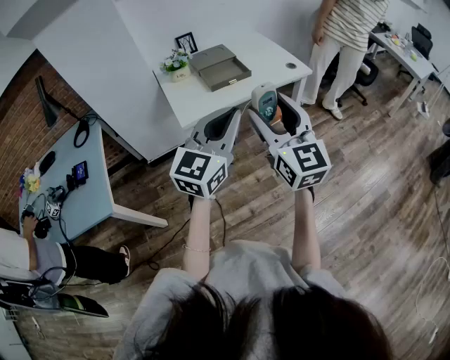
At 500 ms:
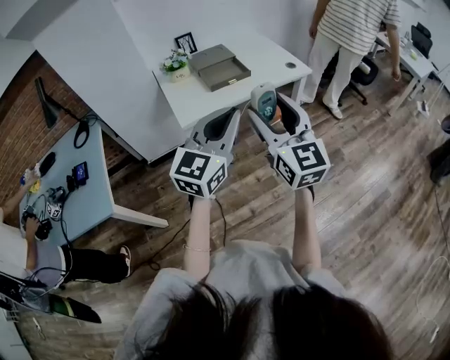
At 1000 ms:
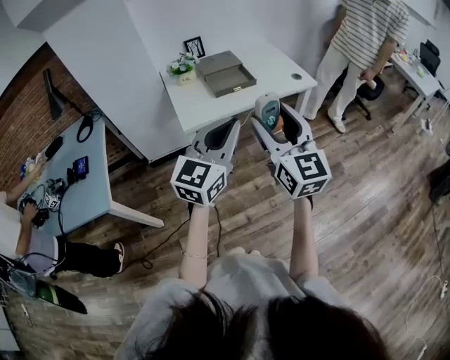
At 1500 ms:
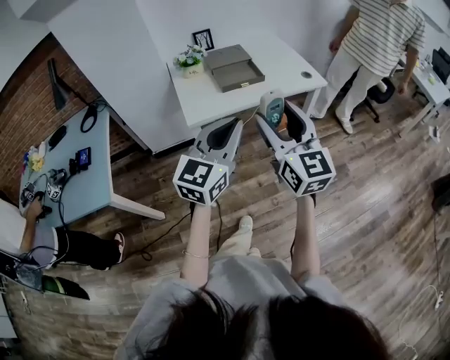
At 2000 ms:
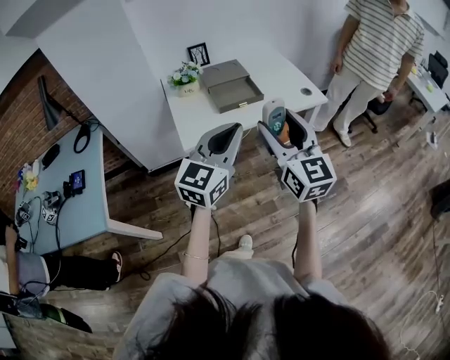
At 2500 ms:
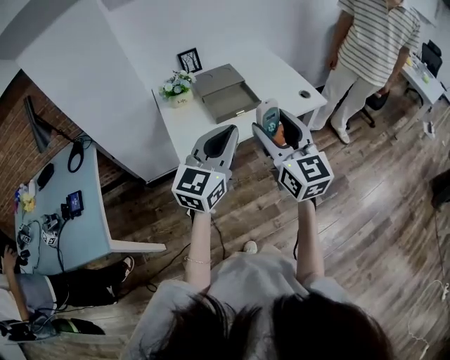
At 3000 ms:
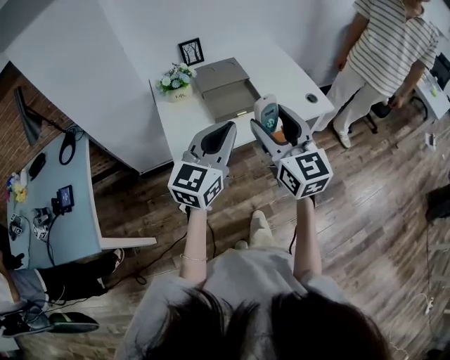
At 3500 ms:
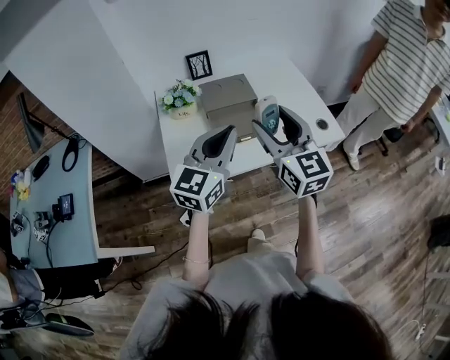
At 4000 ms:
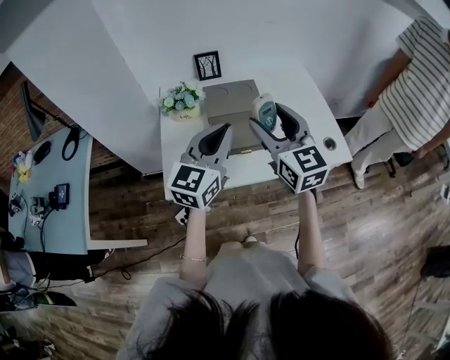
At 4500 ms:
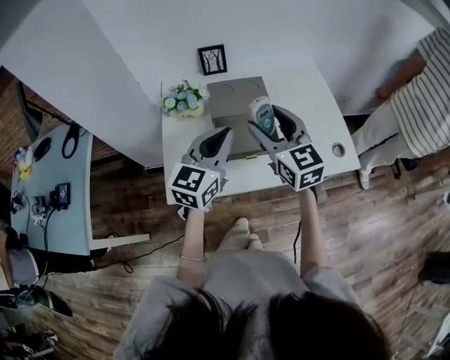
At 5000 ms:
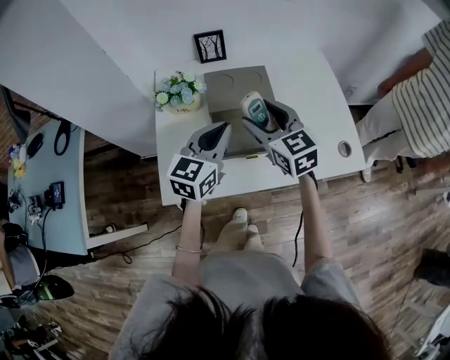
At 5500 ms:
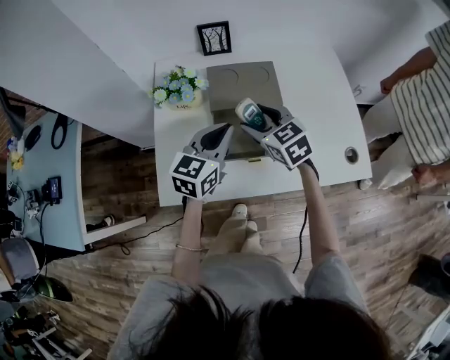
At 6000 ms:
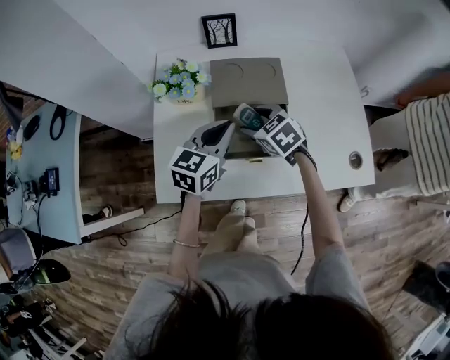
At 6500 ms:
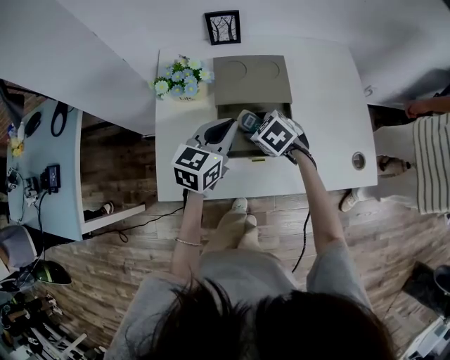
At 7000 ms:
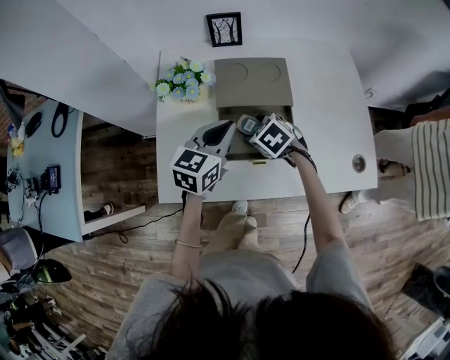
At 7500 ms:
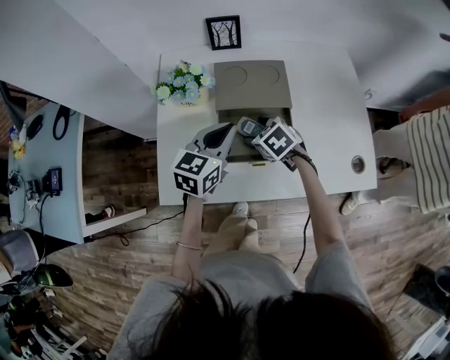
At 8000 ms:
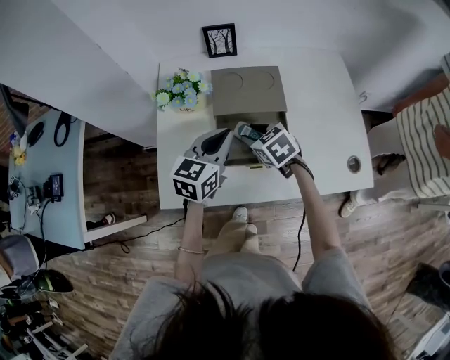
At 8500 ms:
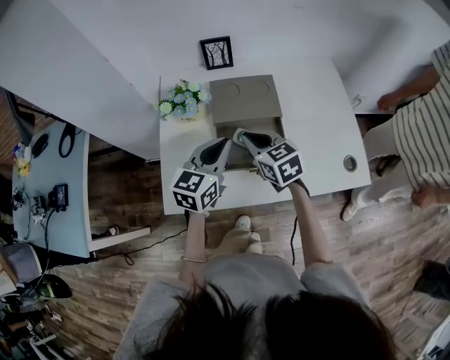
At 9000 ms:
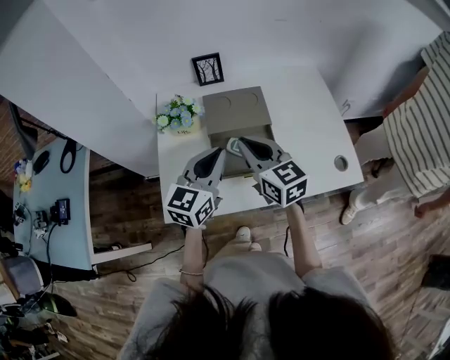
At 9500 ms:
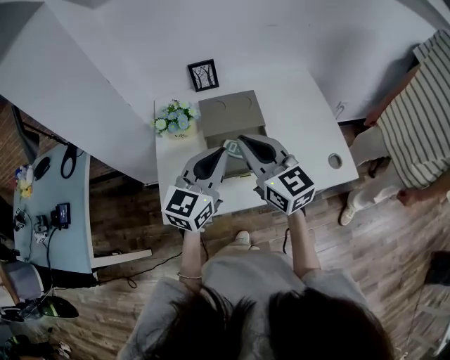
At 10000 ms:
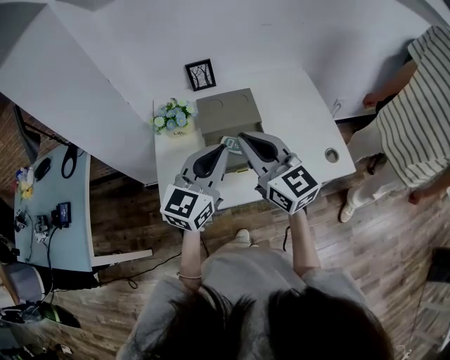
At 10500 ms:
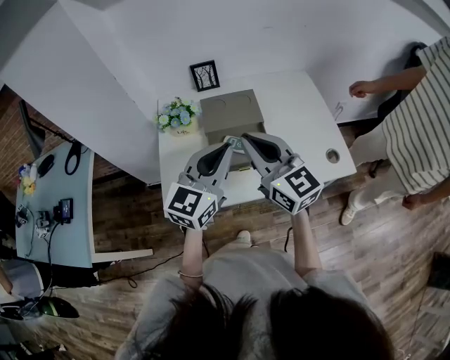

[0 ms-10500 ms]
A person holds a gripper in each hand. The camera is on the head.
0 ms to 2000 ms: Both grippers move forward, about 10 cm.
2000 ms to 4000 ms: Both grippers move forward, some 30 cm.
4000 ms to 6500 ms: Both grippers travel together downward and forward, approximately 30 cm. The right gripper tilts its fingers roughly 60 degrees downward. Meanwhile the left gripper rotates approximately 20 degrees.
6500 ms to 8500 ms: The left gripper moves about 5 cm. Meanwhile the right gripper goes about 10 cm upward, swivels some 30 degrees, and closes up.
8500 ms to 10500 ms: The grippers both shift upward and backward by roughly 20 cm. The right gripper points its fingers some 30 degrees further upward; the left gripper changes its angle by roughly 20 degrees.

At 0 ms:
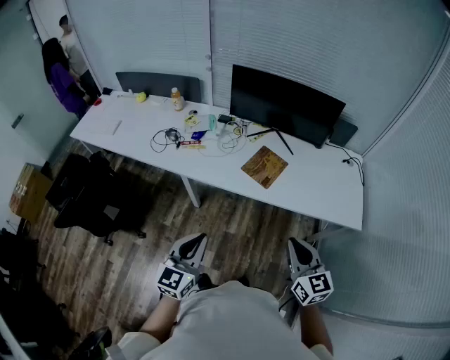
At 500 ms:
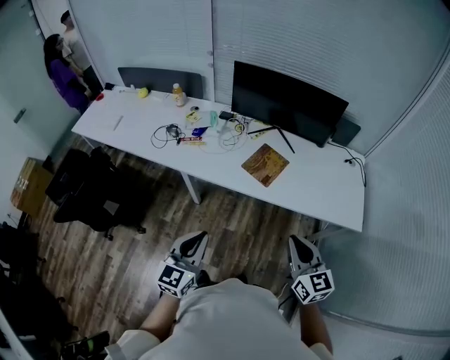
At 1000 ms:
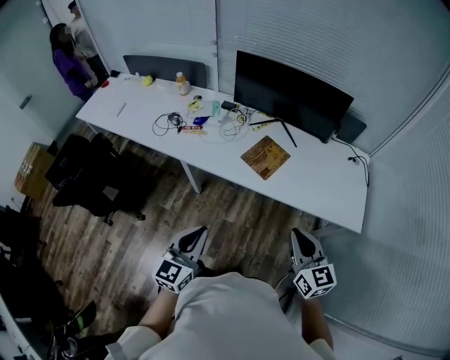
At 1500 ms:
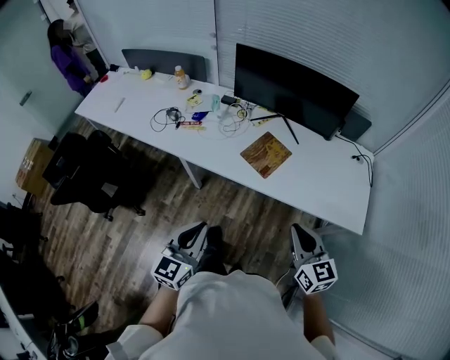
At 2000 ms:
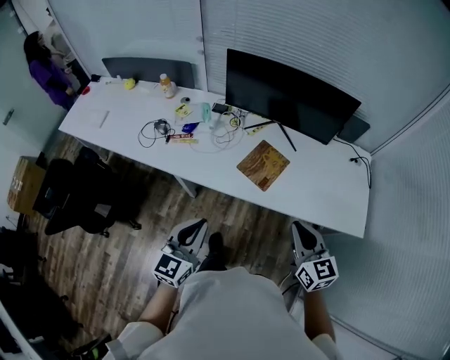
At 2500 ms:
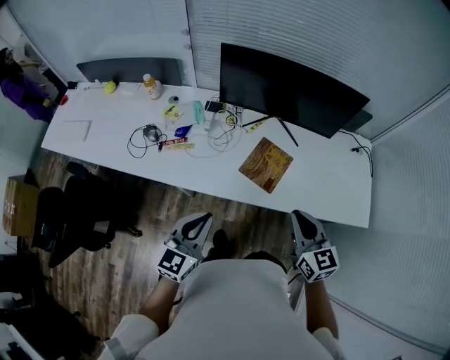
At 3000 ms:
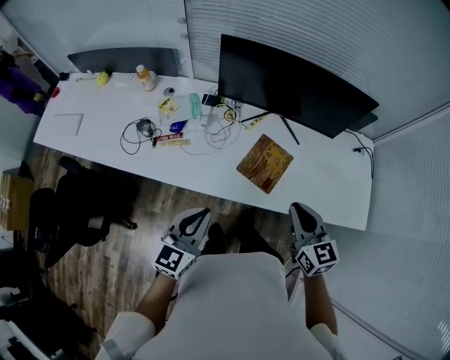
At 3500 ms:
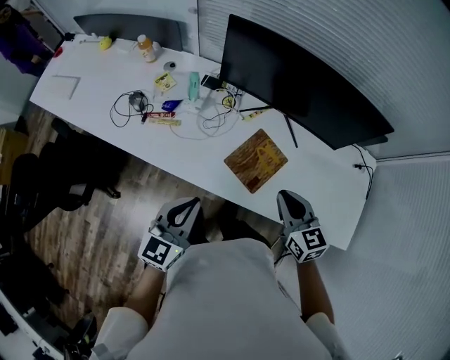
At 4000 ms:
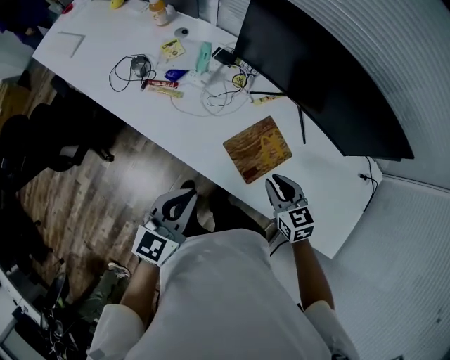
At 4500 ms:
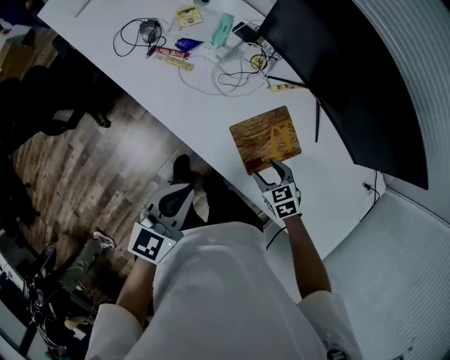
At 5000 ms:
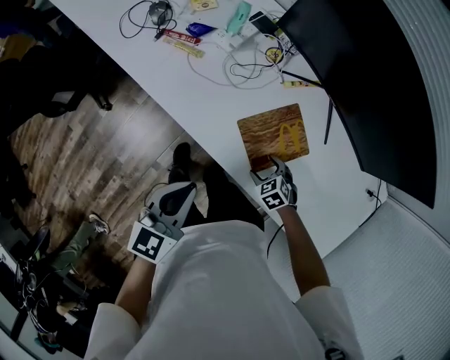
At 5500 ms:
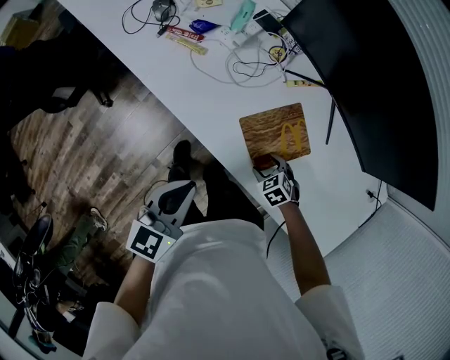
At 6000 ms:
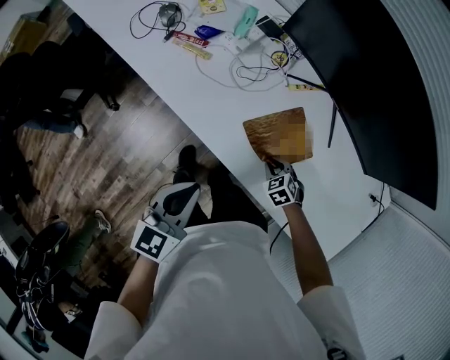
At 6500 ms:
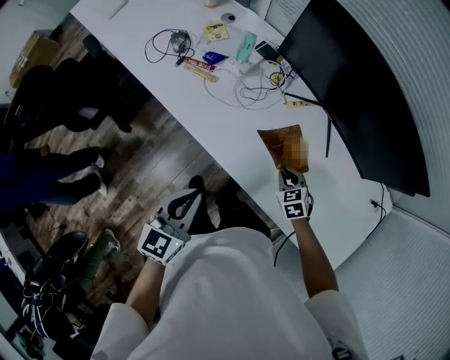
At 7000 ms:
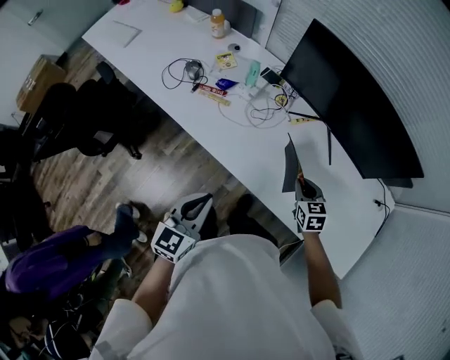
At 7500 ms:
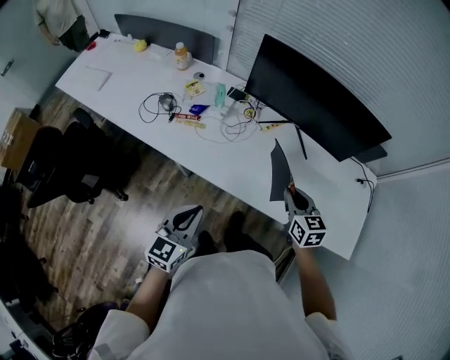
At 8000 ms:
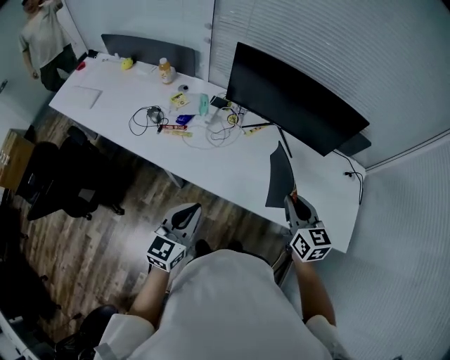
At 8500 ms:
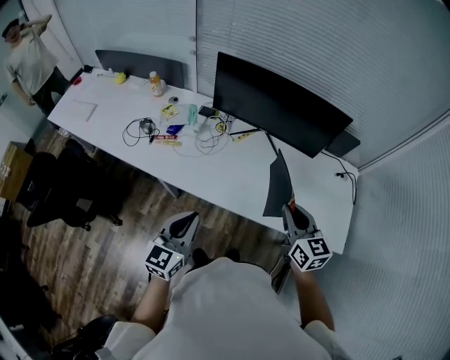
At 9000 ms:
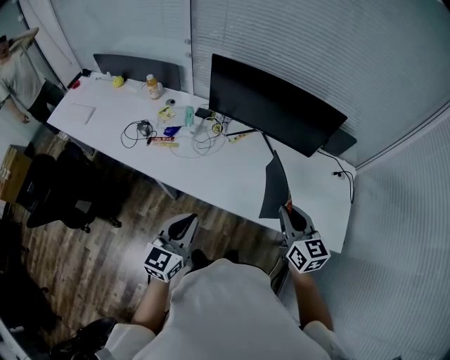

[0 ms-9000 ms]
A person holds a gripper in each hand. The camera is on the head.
0 ms to 2000 ms: Both grippers travel together forward, about 15 cm.
2000 ms to 4500 ms: The right gripper heads downward, covering approximately 35 cm, angles its fingers downward, by approximately 40 degrees, and opens its fingers; the left gripper ends up roughly 20 cm from where it was, and turns by about 30 degrees.
4500 ms to 7000 ms: The left gripper is displaced to the left by some 5 cm. The right gripper heads upward, covering roughly 10 cm, swivels about 30 degrees, and closes.
7000 ms to 9000 ms: The left gripper heads upward, to the right and backward, covering roughly 10 cm. Meanwhile the right gripper travels upward and backward by roughly 30 cm, and rotates some 30 degrees.

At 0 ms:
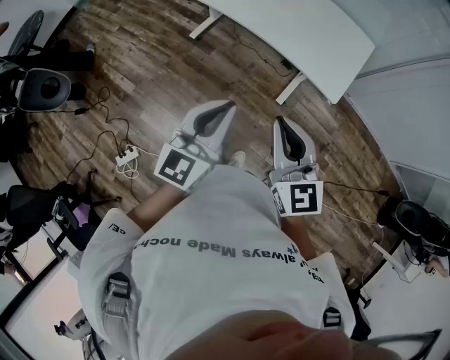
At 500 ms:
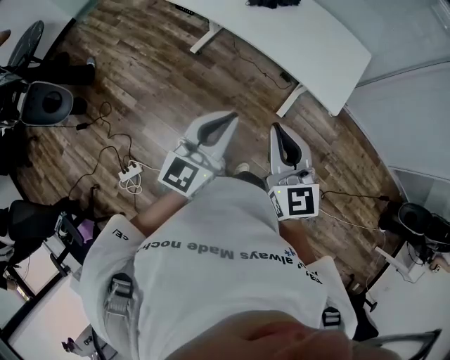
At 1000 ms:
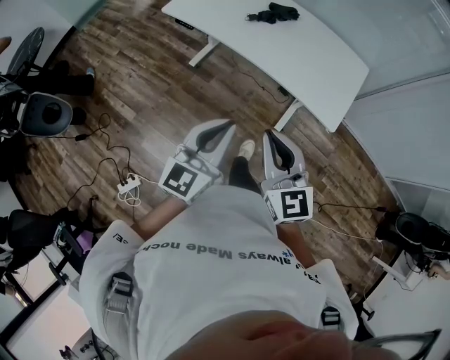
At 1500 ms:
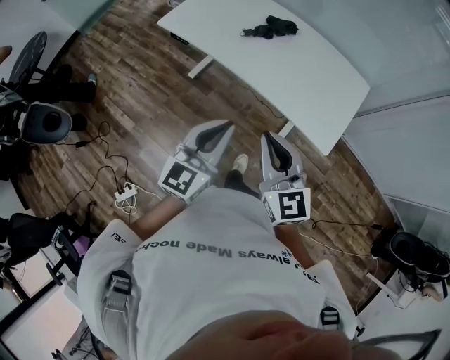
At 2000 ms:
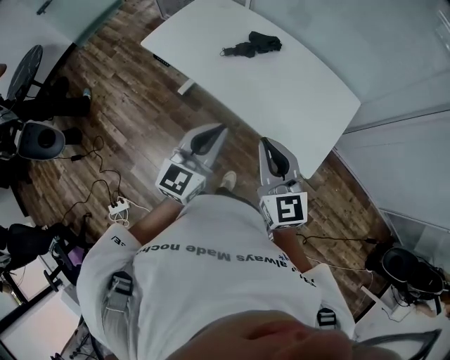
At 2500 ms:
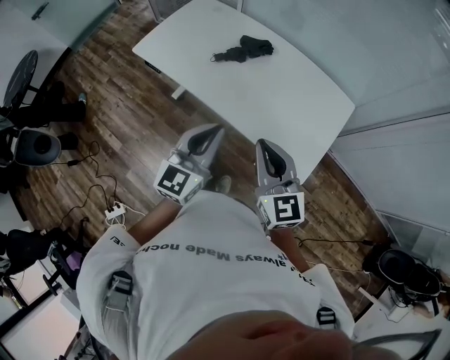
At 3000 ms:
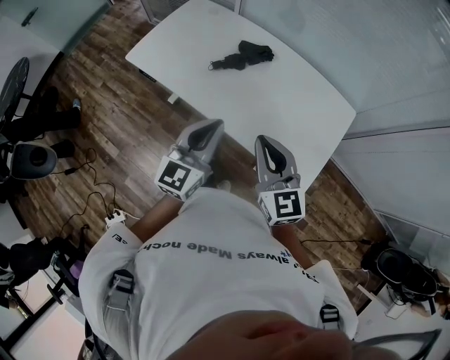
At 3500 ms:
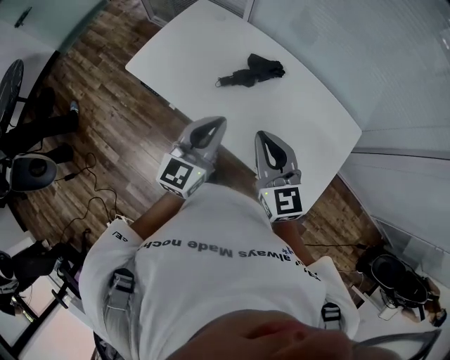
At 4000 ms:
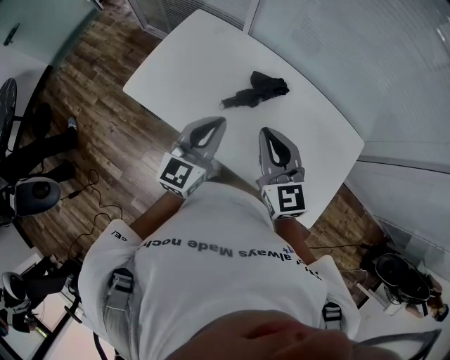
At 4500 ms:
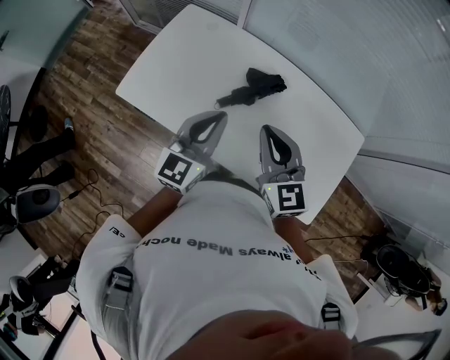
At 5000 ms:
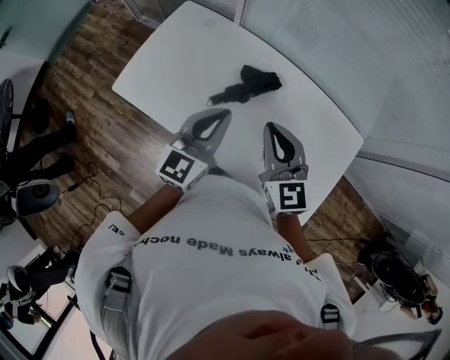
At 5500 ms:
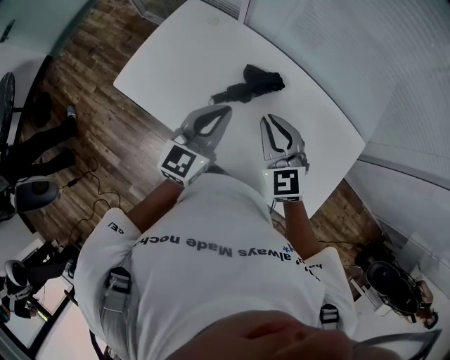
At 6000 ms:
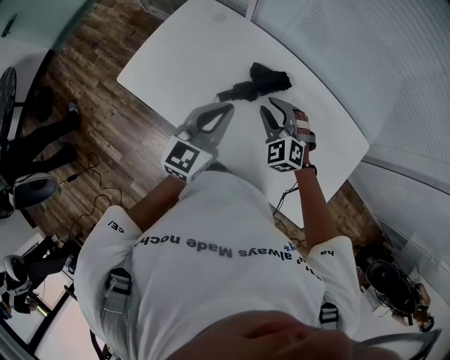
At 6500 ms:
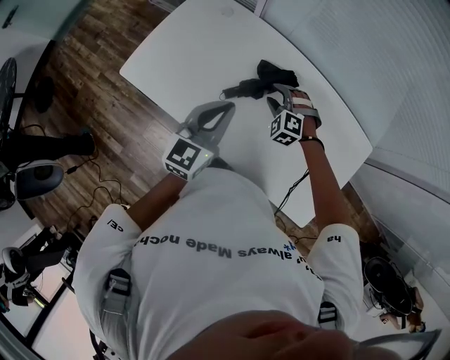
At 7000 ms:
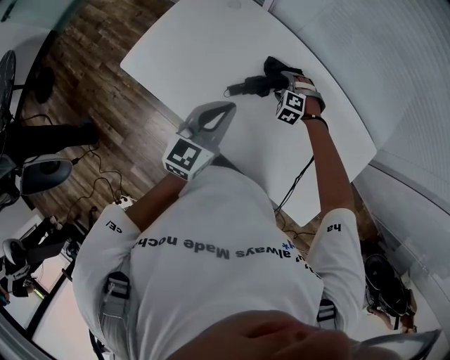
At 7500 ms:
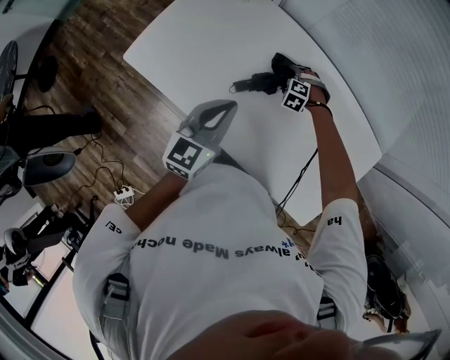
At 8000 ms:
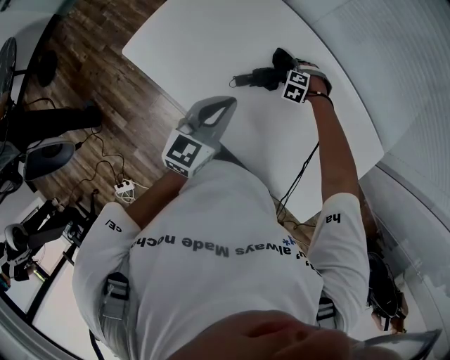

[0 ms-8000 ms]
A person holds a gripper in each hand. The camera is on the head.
0 ms to 2000 ms: The grippers both shift forward by about 30 cm.
2000 ms to 4000 ms: The two grippers travel together, forward, about 40 cm.
4000 ms to 6000 ms: The right gripper moves downward and forward, about 20 cm, swivels about 50 degrees, and opens up. Meanwhile the left gripper moves forward and to the right, about 10 cm.
6000 ms to 8000 ms: The right gripper is displaced downward by approximately 30 cm, tilts its fingers about 40 degrees downward, and opens up. The left gripper goes about 10 cm downward.
